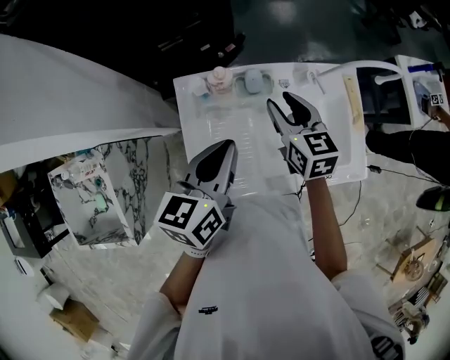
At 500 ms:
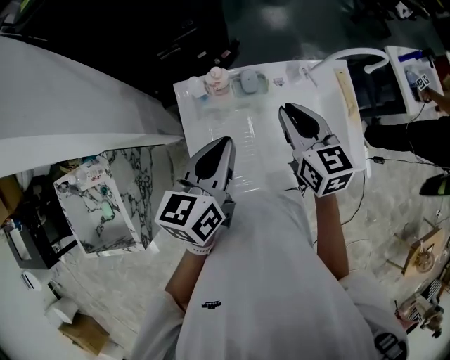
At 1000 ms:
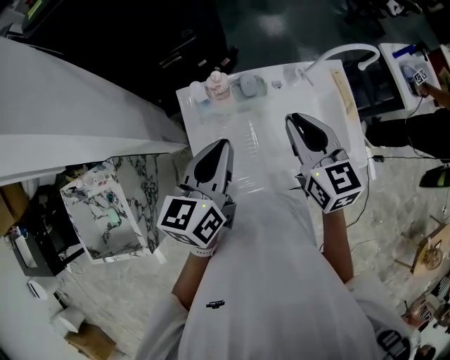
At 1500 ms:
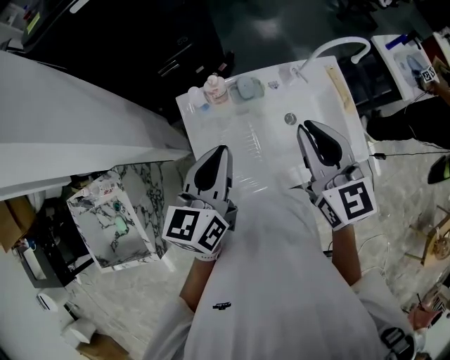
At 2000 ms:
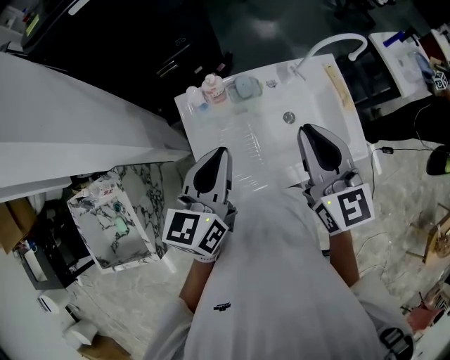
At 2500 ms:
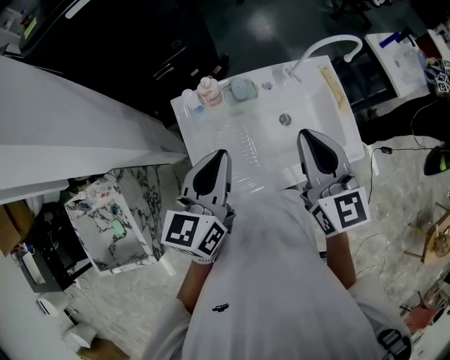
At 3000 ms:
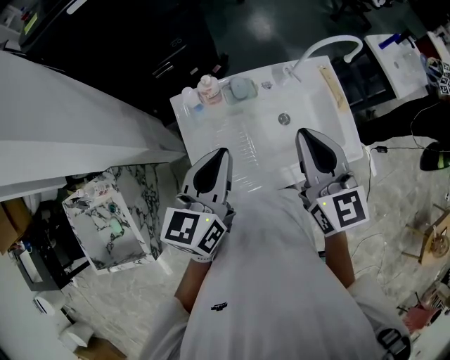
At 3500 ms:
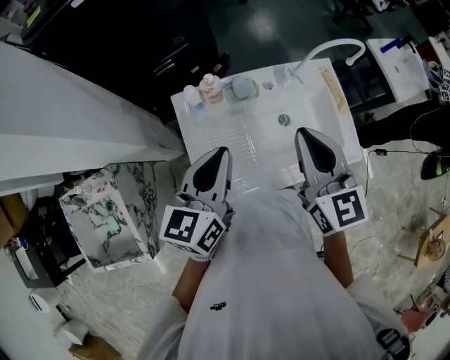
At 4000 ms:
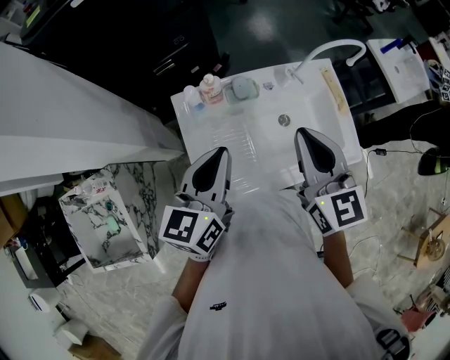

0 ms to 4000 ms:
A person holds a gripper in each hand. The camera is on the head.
0 ms to 2000 ms: The right gripper heads upward and backward, covering some 20 cm, rotates approximately 20 degrees, and closes. The left gripper is displaced upward by roughly 5 cm.
2000 ms to 4000 ms: The two grippers keep their place.

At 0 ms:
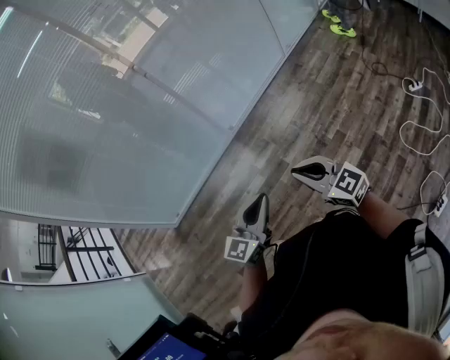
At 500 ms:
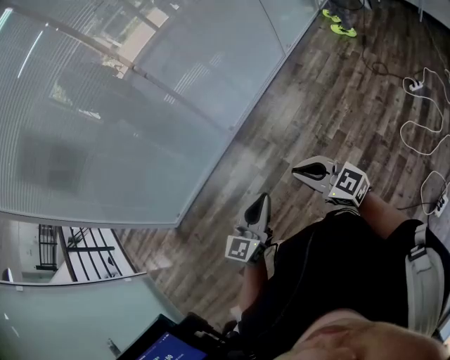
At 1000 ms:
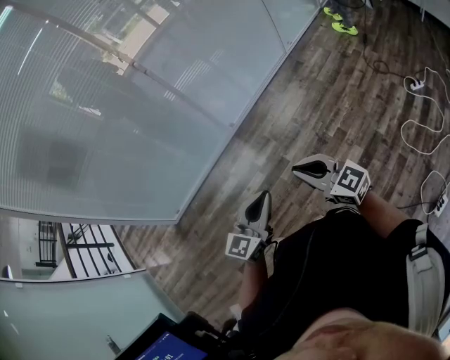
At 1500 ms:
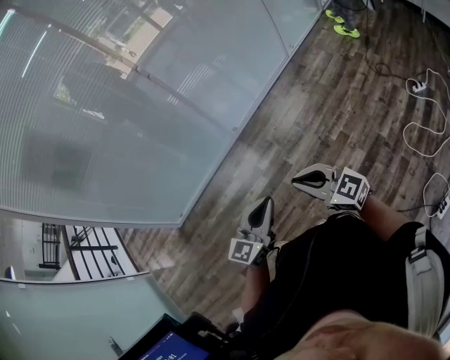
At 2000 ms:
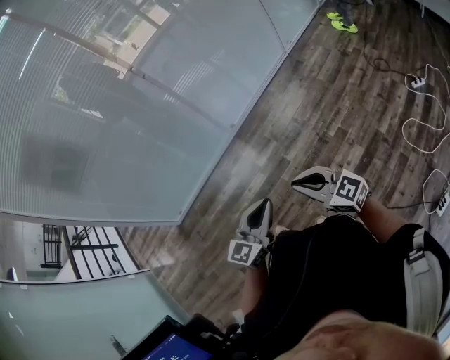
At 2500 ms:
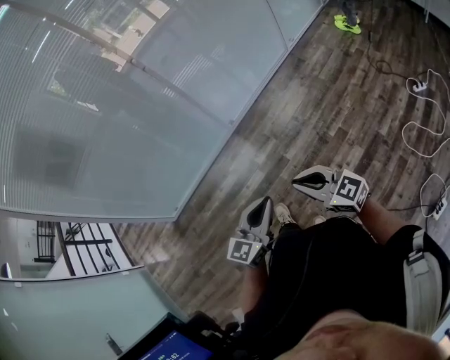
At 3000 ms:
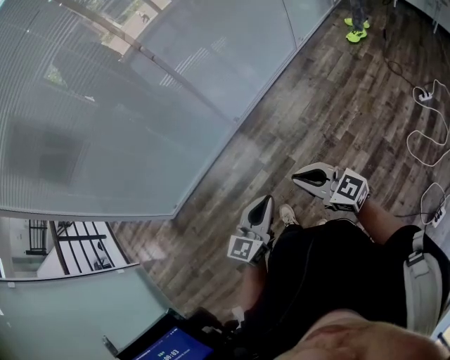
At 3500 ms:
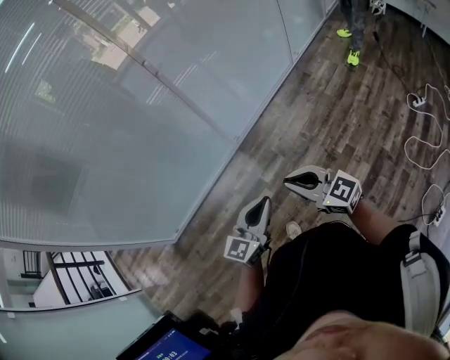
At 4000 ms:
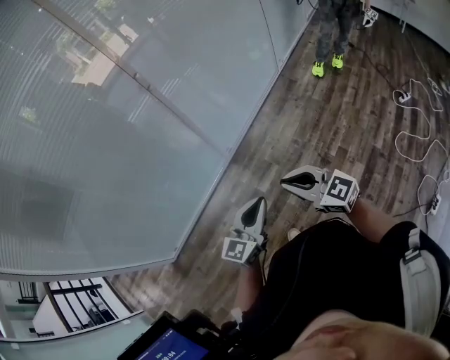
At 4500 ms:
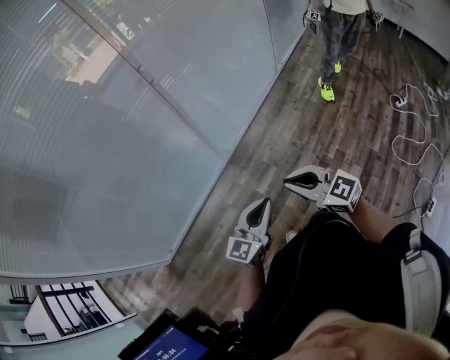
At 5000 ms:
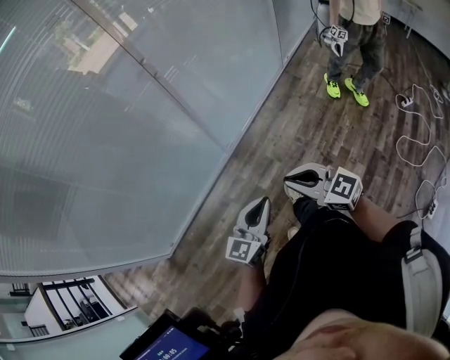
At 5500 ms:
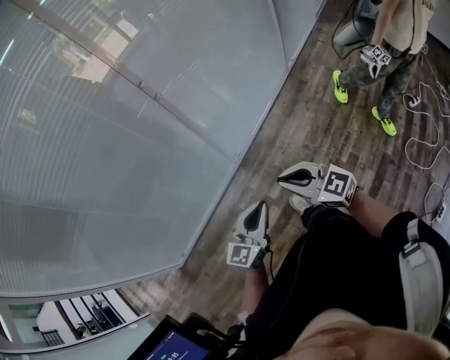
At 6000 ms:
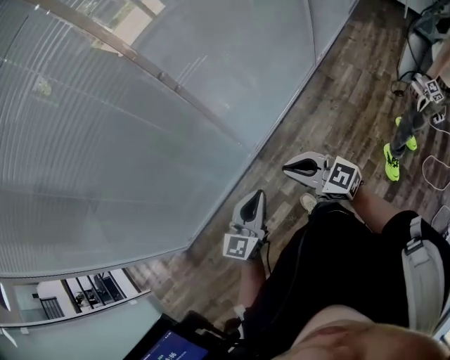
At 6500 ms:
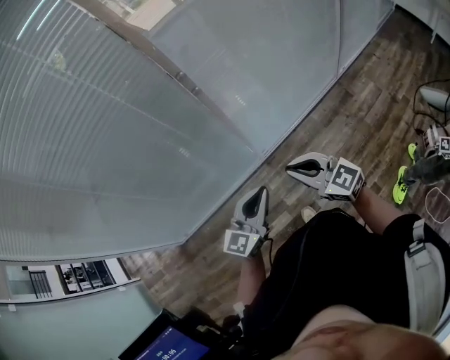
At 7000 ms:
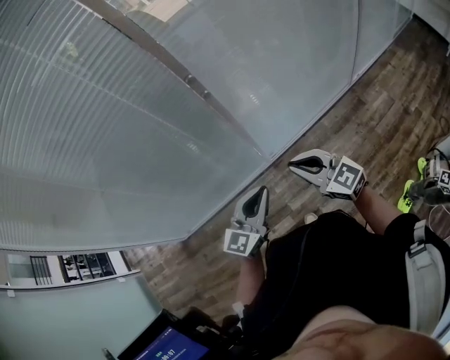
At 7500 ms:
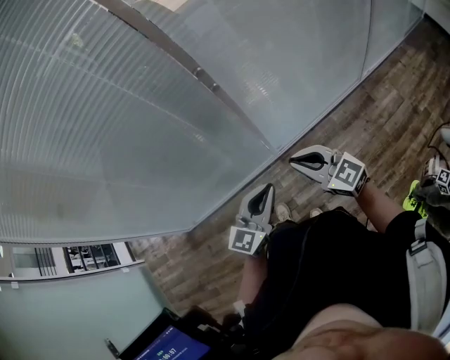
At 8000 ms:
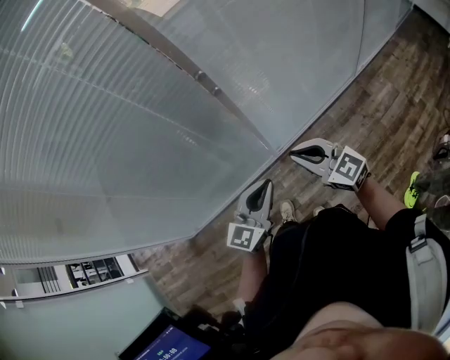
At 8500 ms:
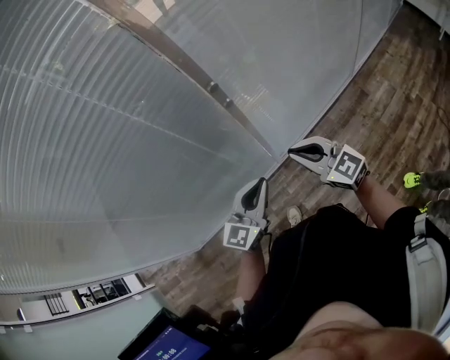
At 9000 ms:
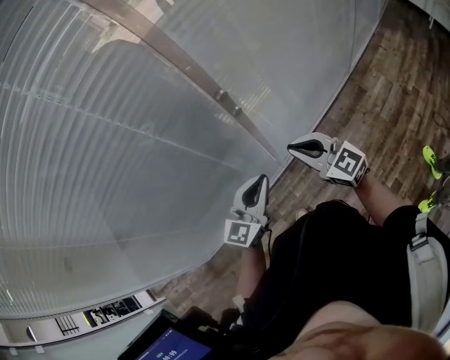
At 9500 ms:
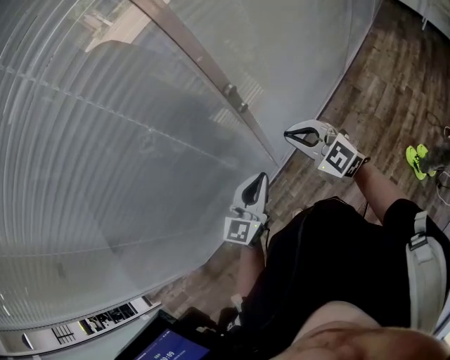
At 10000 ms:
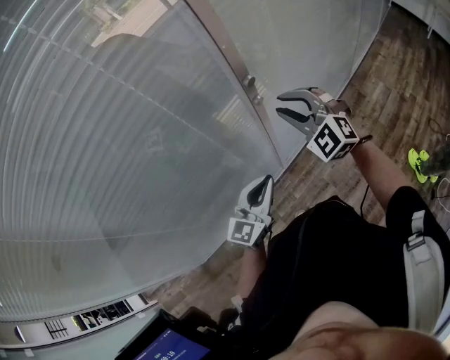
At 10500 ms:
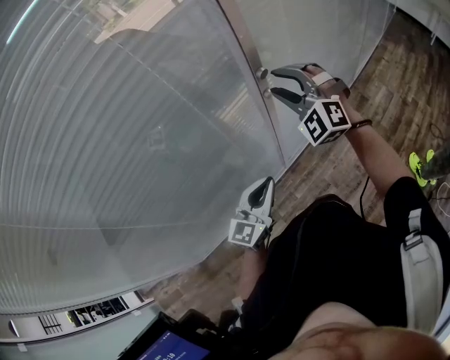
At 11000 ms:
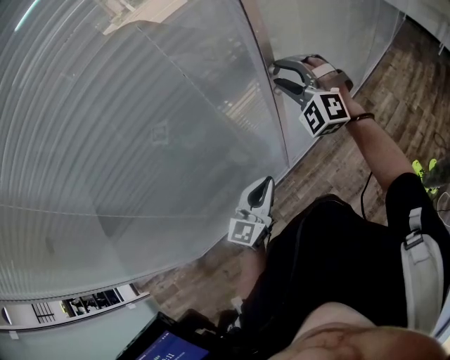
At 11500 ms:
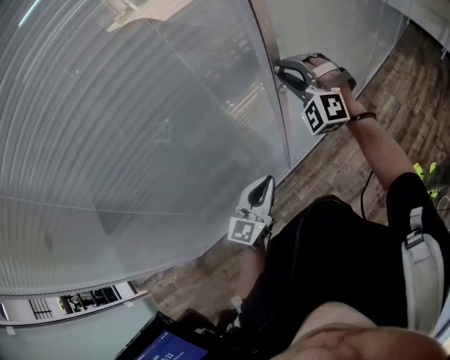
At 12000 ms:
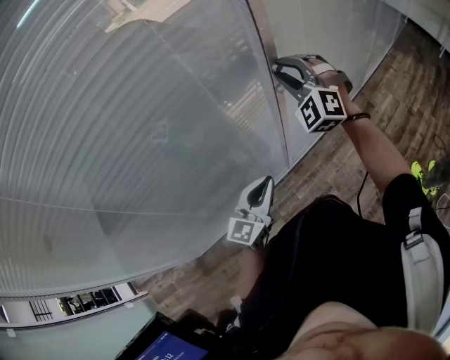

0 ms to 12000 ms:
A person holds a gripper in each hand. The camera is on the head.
0 ms to 2000 ms: There are only small adjustments of the grippers.
2000 ms to 4000 ms: The two grippers go some 25 cm forward and to the left.
4000 ms to 6000 ms: The grippers both shift forward by some 15 cm.
6000 ms to 8000 ms: The grippers both shift forward by about 15 cm.
8000 ms to 10000 ms: The grippers both shift forward and to the left by some 20 cm. The right gripper rotates some 50 degrees, and opens its fingers.
10000 ms to 12000 ms: The left gripper heads to the left, covering about 5 cm, while the right gripper is displaced forward and to the left by approximately 5 cm, and changes its angle by about 20 degrees.

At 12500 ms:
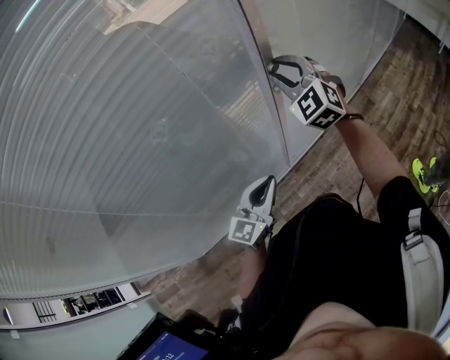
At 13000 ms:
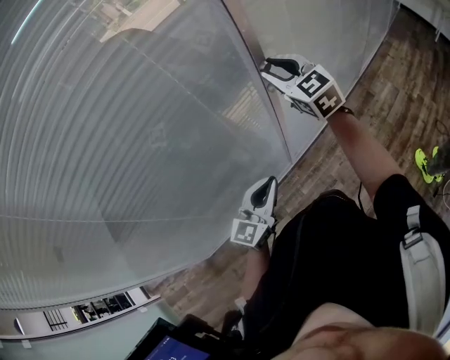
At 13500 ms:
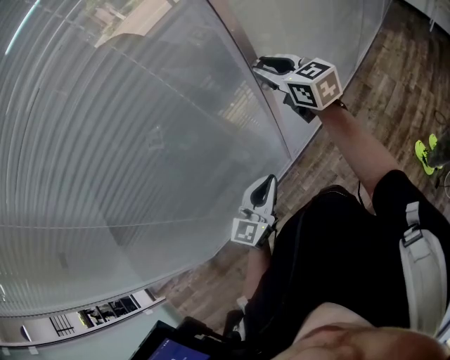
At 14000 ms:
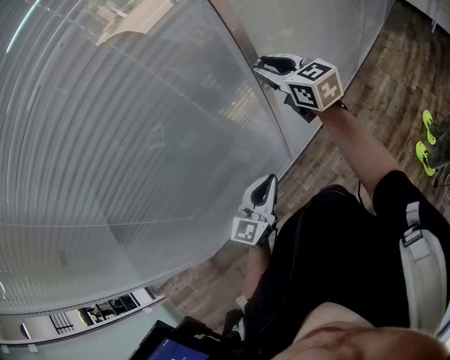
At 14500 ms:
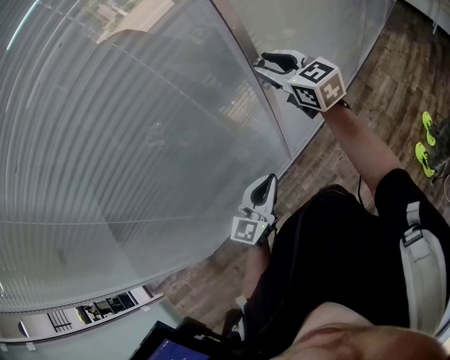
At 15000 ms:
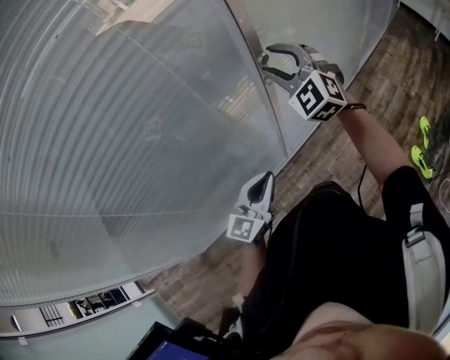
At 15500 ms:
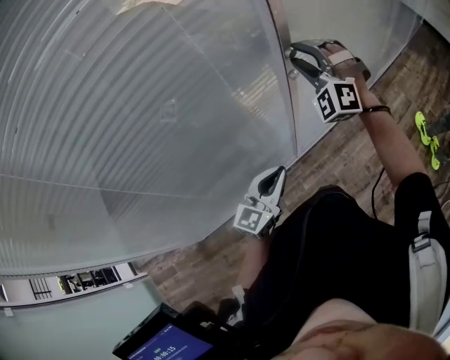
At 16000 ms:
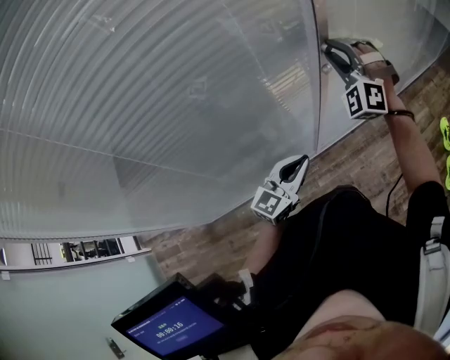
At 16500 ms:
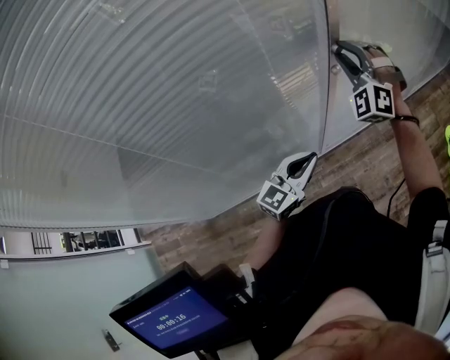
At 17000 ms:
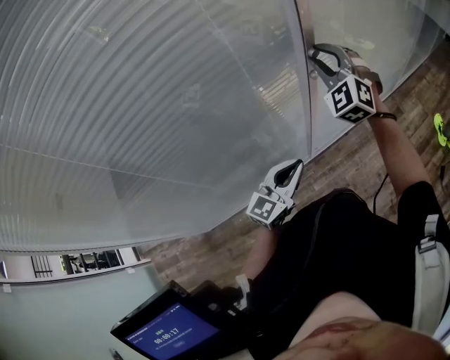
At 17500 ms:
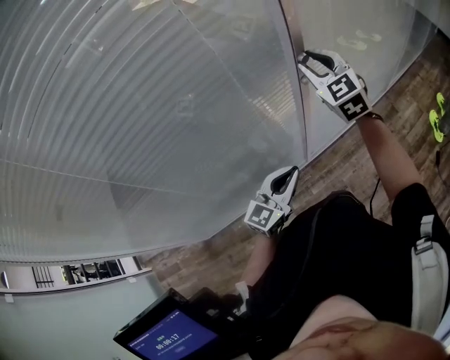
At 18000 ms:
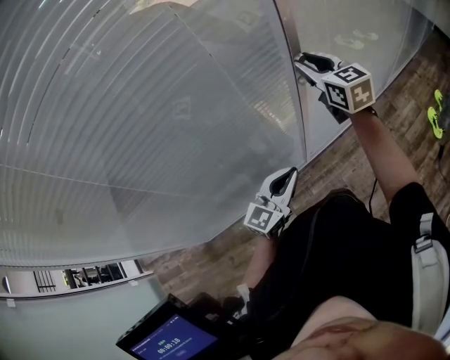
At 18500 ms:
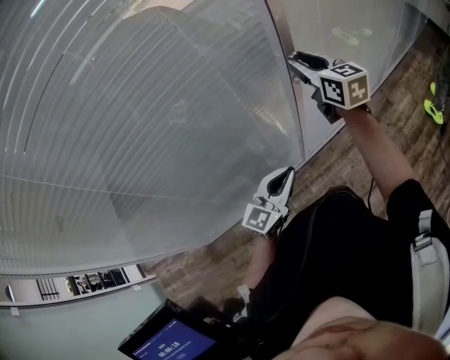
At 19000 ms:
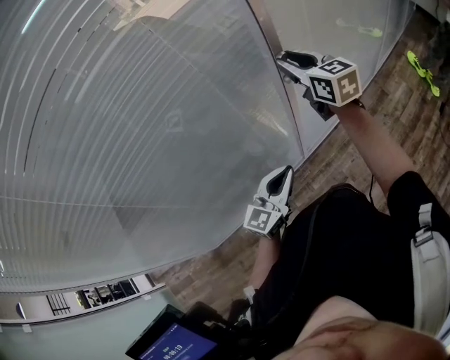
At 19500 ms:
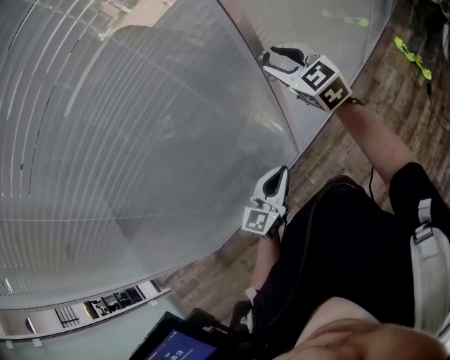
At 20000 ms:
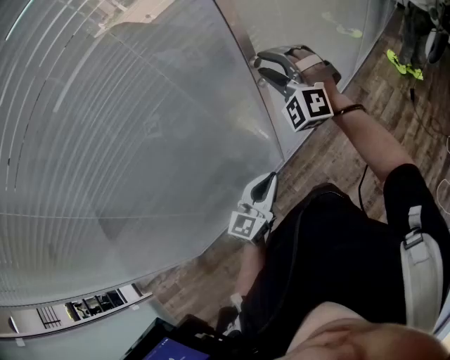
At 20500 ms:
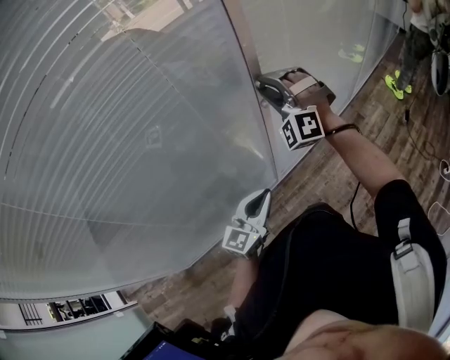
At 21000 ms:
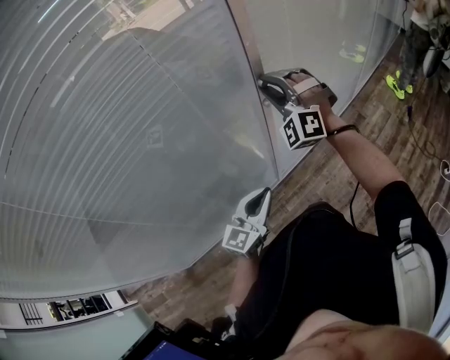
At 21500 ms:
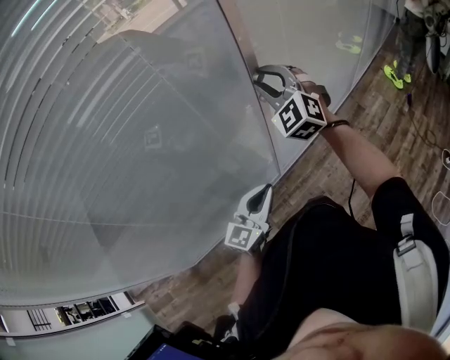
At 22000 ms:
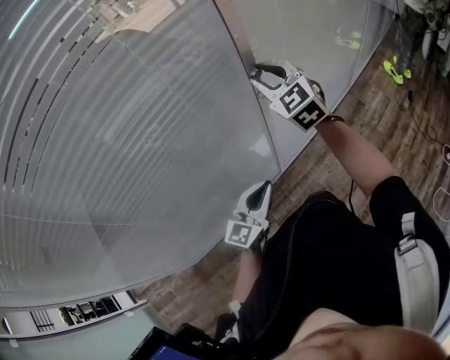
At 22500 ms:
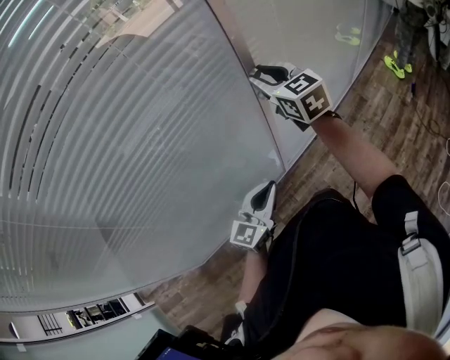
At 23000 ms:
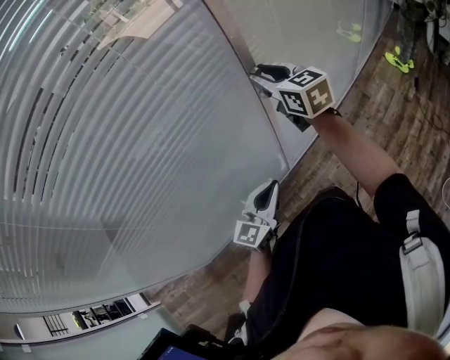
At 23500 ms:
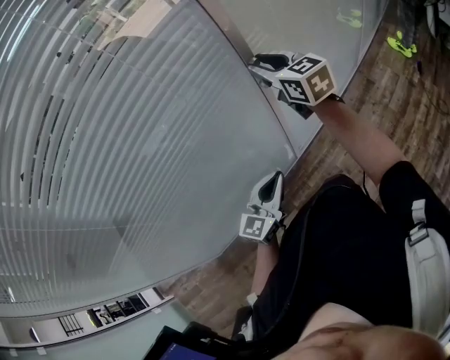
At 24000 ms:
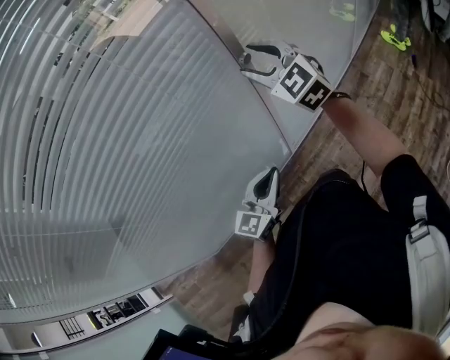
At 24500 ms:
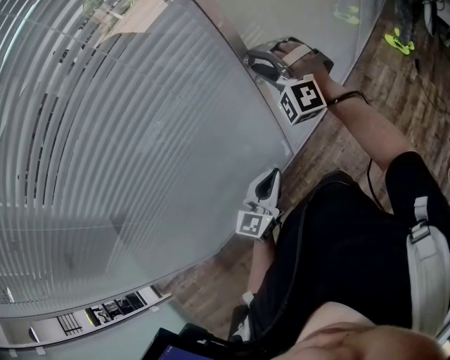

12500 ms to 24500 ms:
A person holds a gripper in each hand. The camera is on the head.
12500 ms to 14500 ms: The right gripper rotates around the line of its fingers by approximately 40 degrees, clockwise from behind.
14500 ms to 16500 ms: The right gripper twists about 70 degrees counterclockwise, seen from behind.
16500 ms to 18500 ms: The right gripper rolls clockwise, seen from behind, by approximately 80 degrees.
18500 ms to 20500 ms: The right gripper rolls counterclockwise, seen from behind, by roughly 90 degrees.
20500 ms to 22500 ms: The right gripper rolls clockwise, seen from behind, by about 80 degrees.
22500 ms to 24500 ms: The right gripper rolls counterclockwise, seen from behind, by about 70 degrees.
